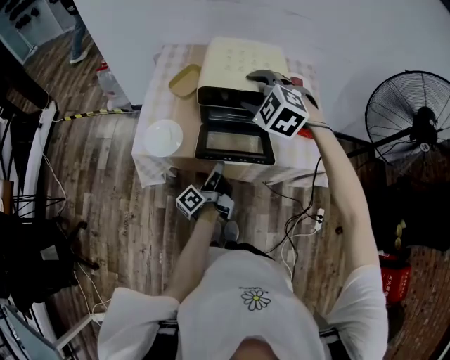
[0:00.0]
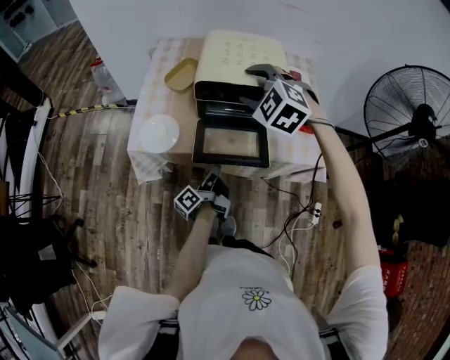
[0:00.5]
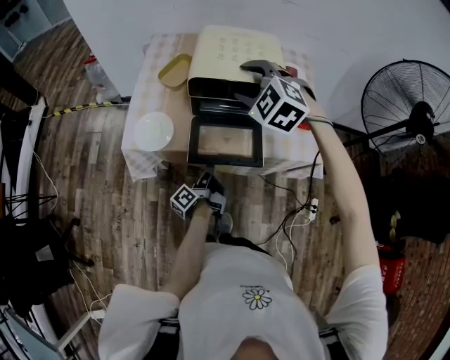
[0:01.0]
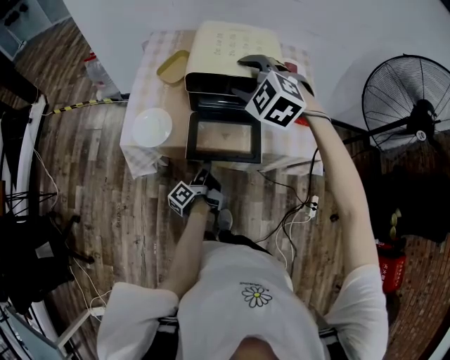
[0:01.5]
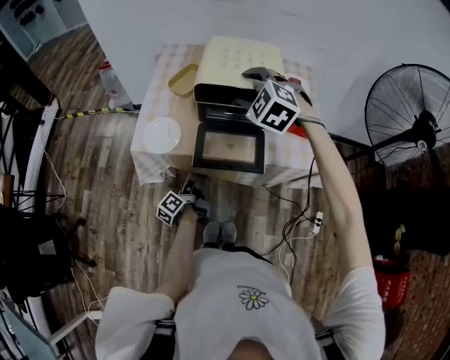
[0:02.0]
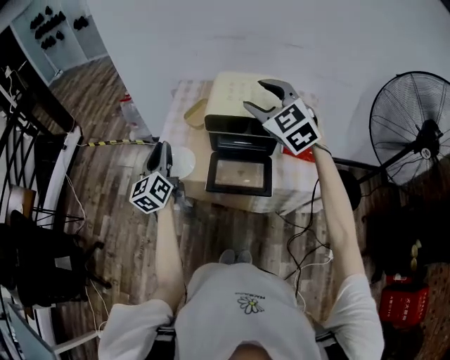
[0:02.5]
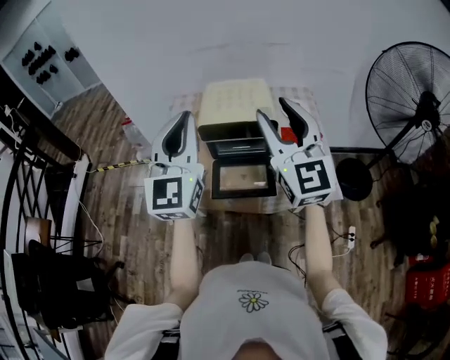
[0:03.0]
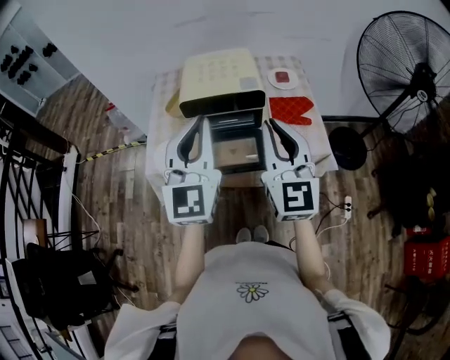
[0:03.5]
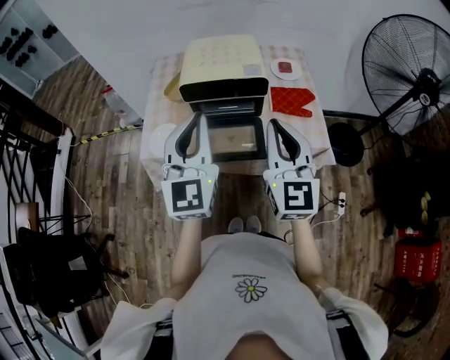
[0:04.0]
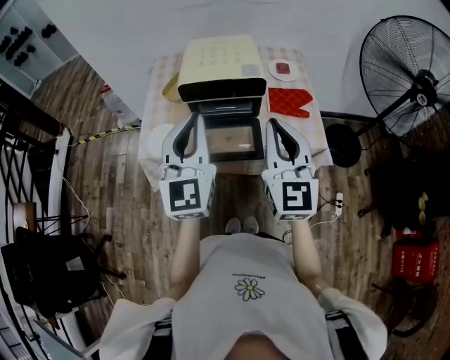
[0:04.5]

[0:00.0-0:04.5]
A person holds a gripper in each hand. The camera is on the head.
0:00.0 to 0:02.0: The left gripper is displaced downward and to the left by some 15 cm, and turns by roughly 30 degrees.
0:02.0 to 0:04.5: The right gripper goes approximately 20 cm backward and to the right, points its fingers approximately 50 degrees further upward, and closes its fingers. The left gripper heads upward, covering about 40 cm, and rolls clockwise, seen from behind, by roughly 90 degrees.

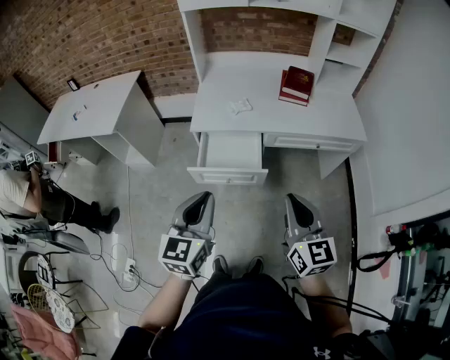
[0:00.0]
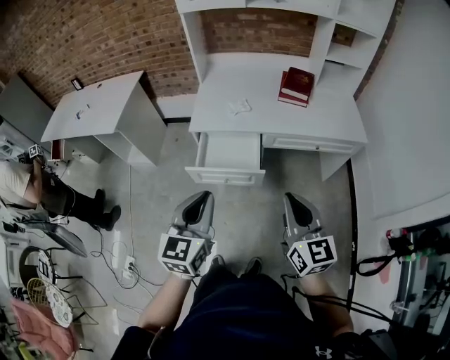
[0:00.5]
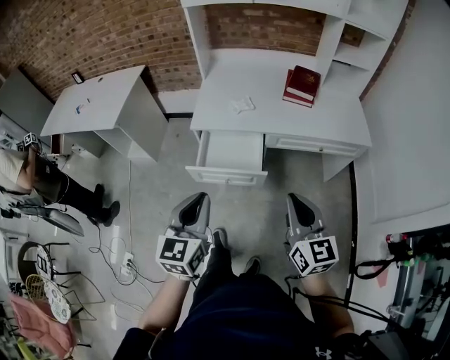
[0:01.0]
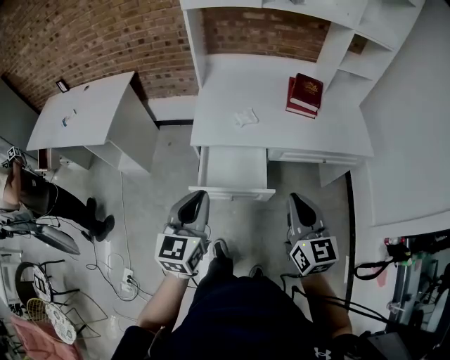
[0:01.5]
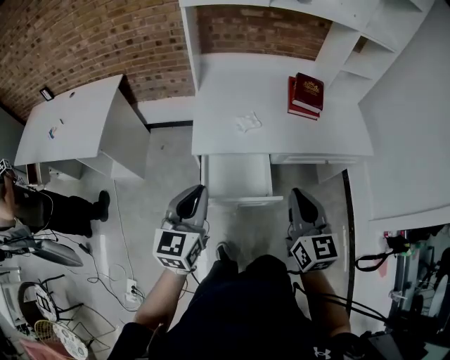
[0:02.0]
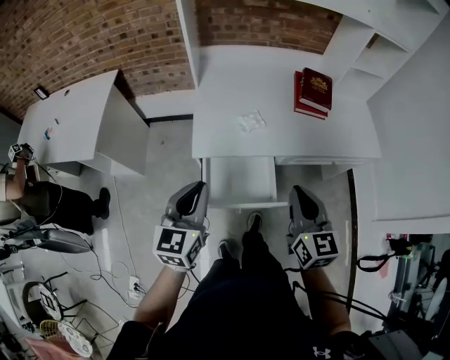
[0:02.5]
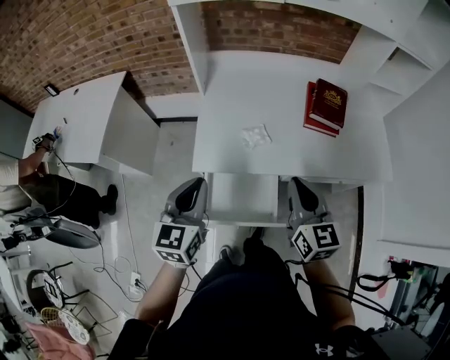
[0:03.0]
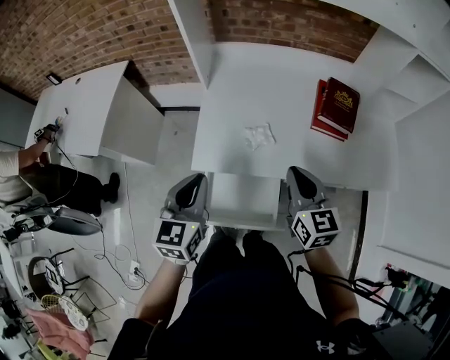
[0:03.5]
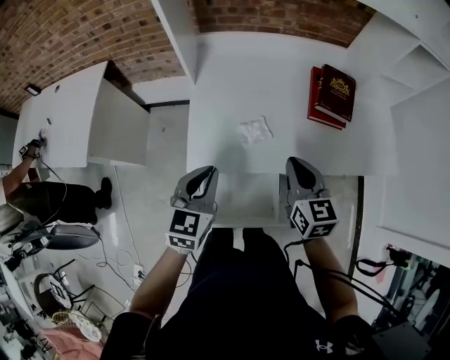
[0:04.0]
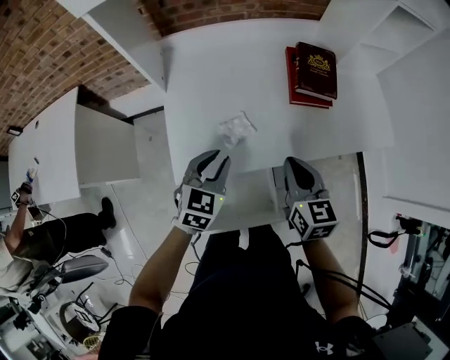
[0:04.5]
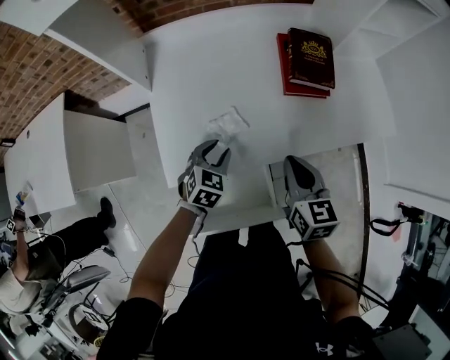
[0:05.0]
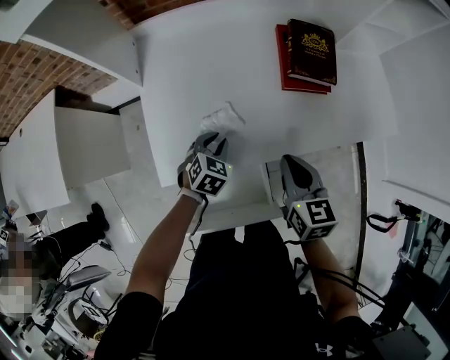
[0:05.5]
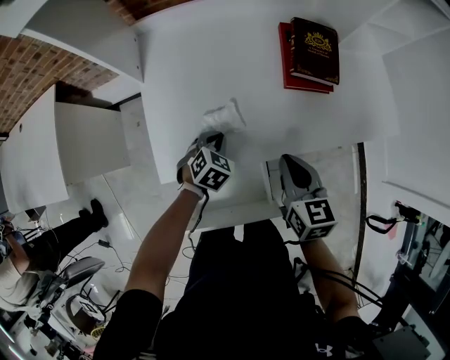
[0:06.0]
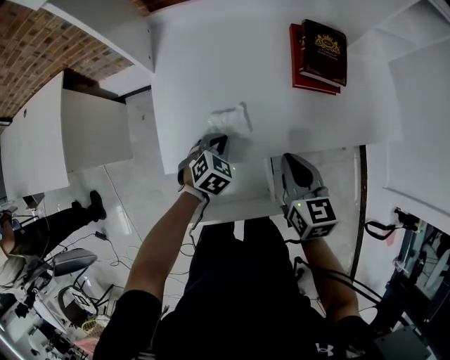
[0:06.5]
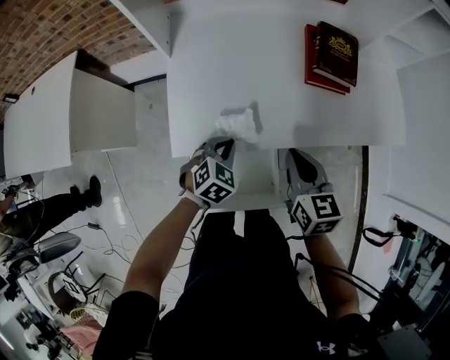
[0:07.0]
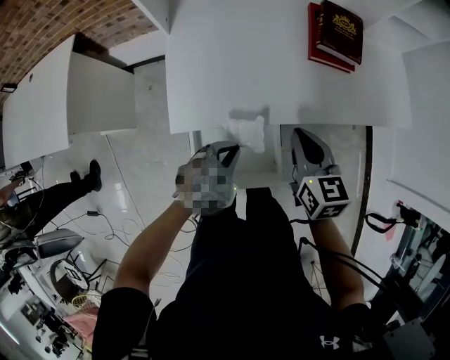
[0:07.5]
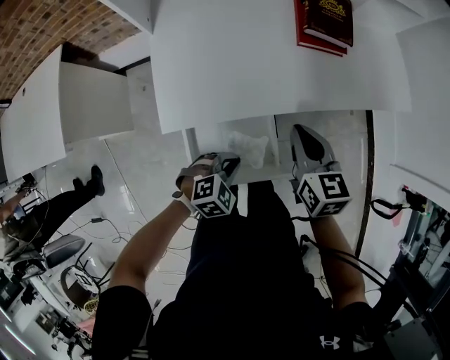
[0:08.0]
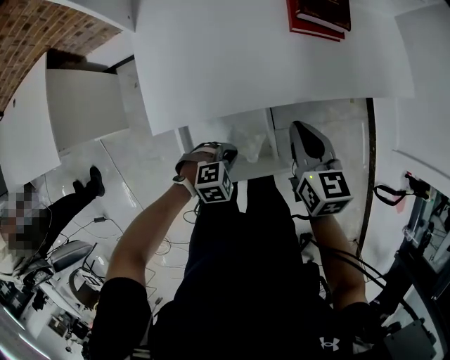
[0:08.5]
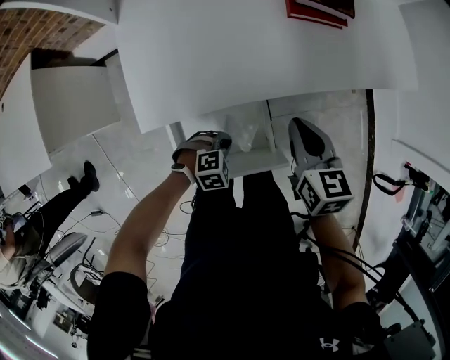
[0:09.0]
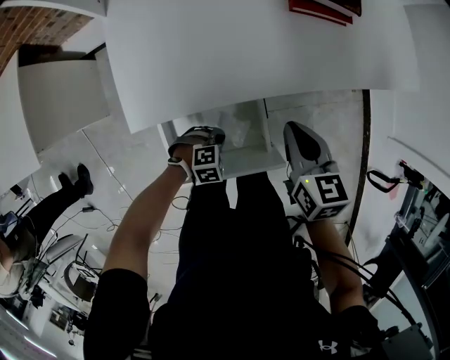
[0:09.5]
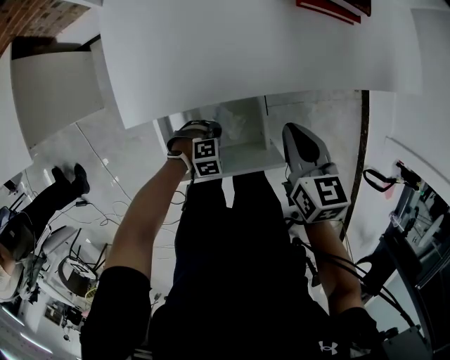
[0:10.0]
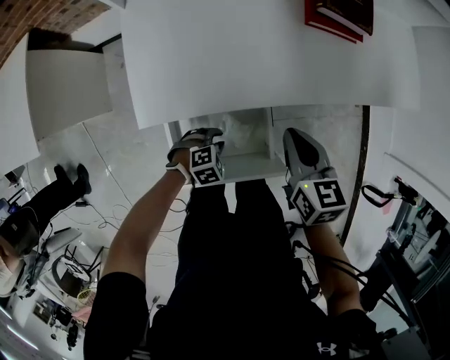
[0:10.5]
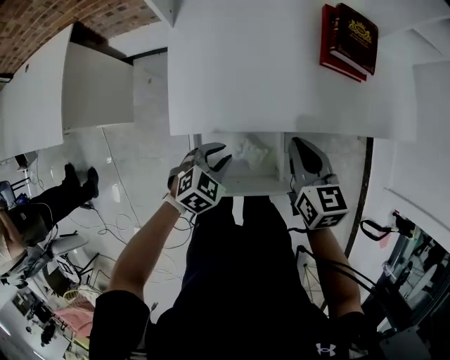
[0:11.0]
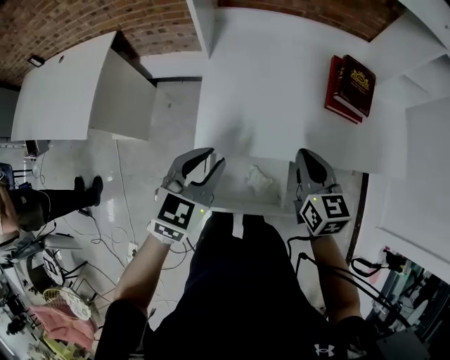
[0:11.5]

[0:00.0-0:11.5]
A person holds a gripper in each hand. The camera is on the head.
0:00.0 to 0:02.0: Both grippers travel together forward and to the left, about 20 cm.
0:02.0 to 0:04.0: Both grippers travel together forward, about 25 cm.
0:04.0 to 0:06.0: The left gripper shifts some 30 cm downward, forward and to the right, points its fingers roughly 30 degrees further downward, and opens, then closes again. Meanwhile the right gripper is displaced downward and to the right by roughly 10 cm.
0:06.0 to 0:07.5: The left gripper heads backward, covering approximately 15 cm, while the right gripper ends up about 5 cm from where it was.
0:07.5 to 0:09.5: The right gripper is displaced downward by approximately 10 cm, while the left gripper is displaced downward by some 20 cm, and rotates roughly 40 degrees.
0:09.5 to 0:11.5: The right gripper goes some 15 cm upward, and changes its angle by roughly 20 degrees. The left gripper travels upward by roughly 40 cm, points its fingers approximately 40 degrees further upward, and opens its fingers.

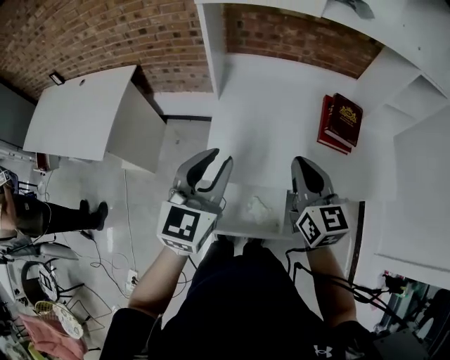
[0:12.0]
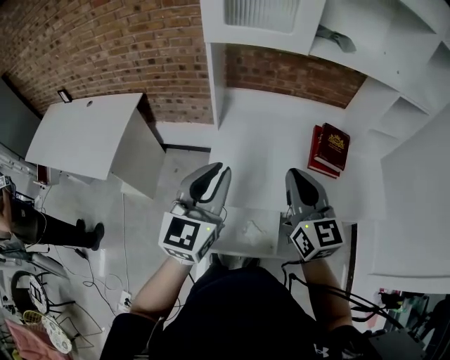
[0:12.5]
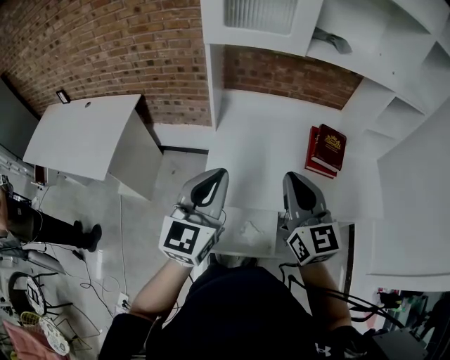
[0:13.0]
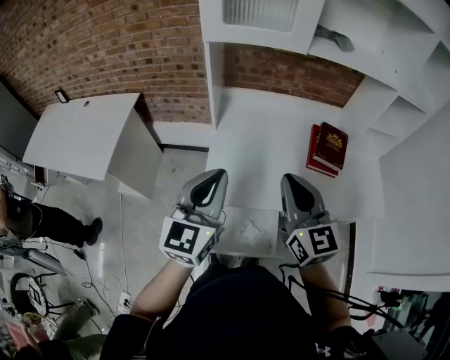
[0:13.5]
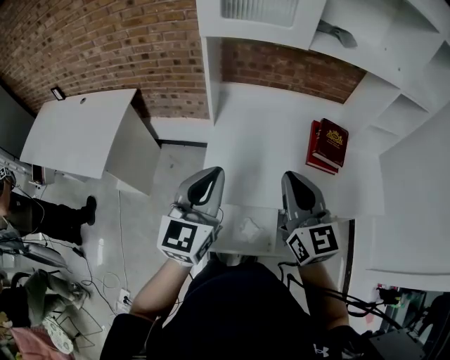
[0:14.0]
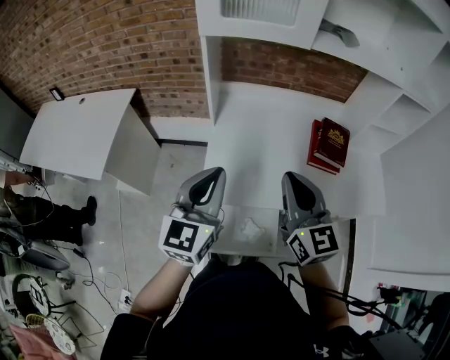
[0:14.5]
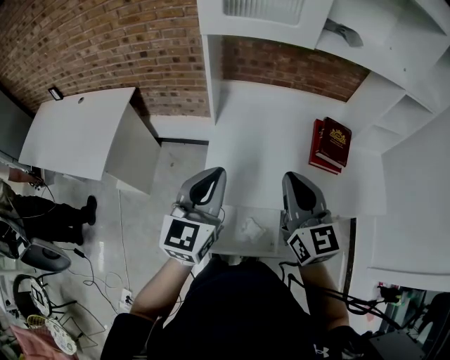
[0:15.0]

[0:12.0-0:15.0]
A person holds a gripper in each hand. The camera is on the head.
0:12.0 to 0:13.5: The left gripper moves about 5 cm, and closes its fingers; the right gripper travels upward by approximately 10 cm.
0:13.5 to 0:15.0: The grippers make only small movements.

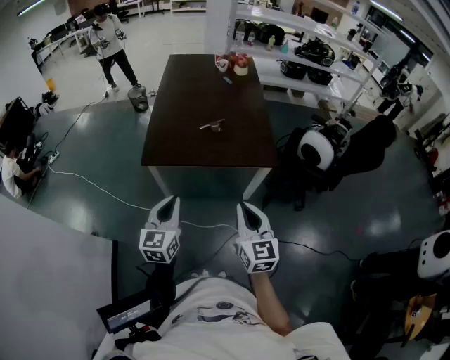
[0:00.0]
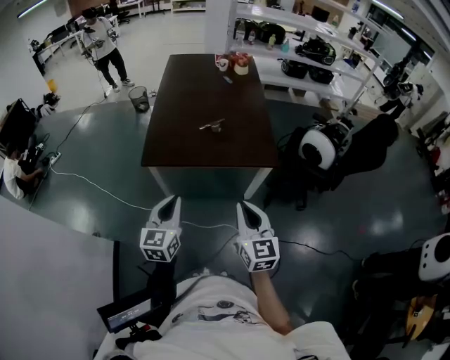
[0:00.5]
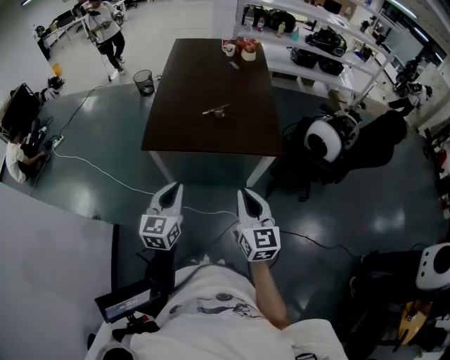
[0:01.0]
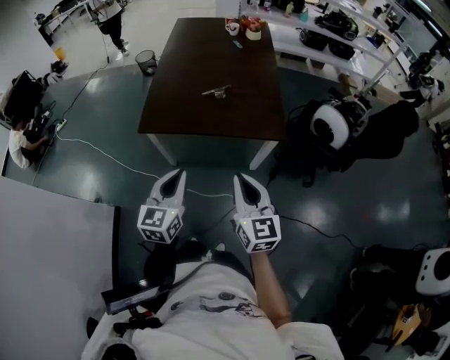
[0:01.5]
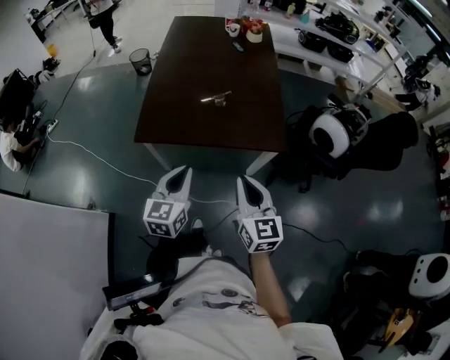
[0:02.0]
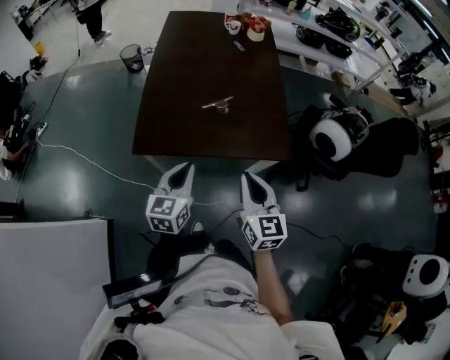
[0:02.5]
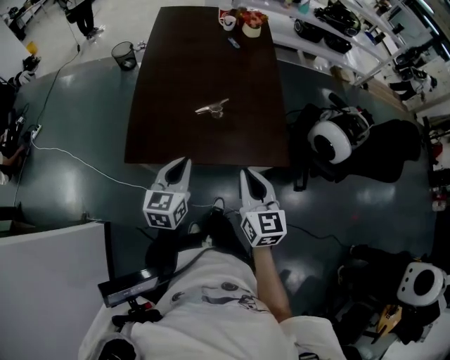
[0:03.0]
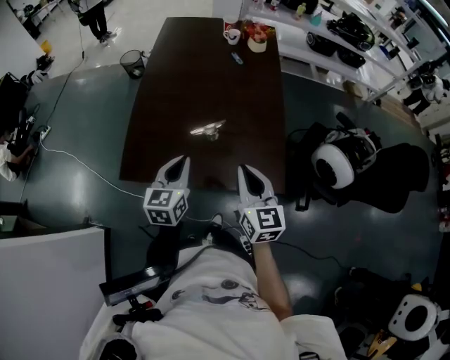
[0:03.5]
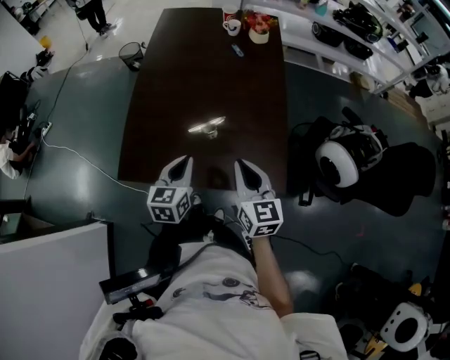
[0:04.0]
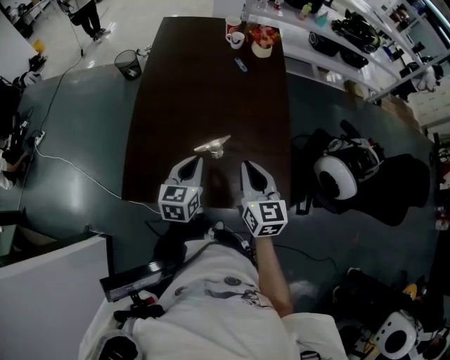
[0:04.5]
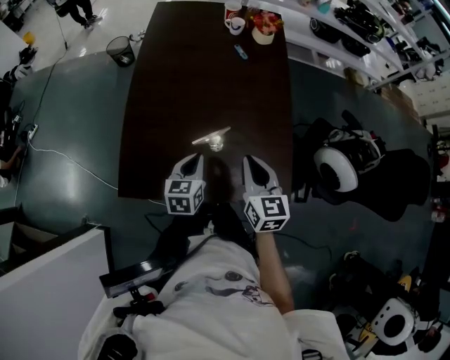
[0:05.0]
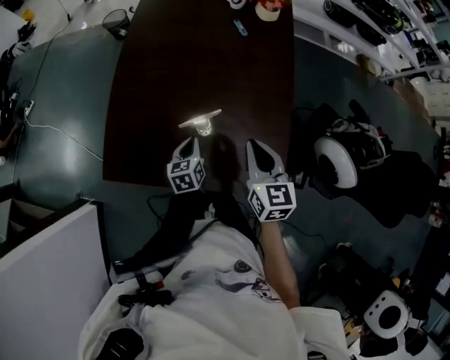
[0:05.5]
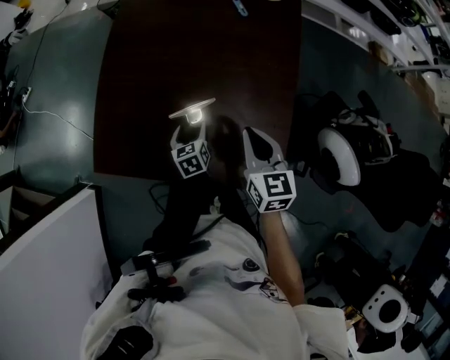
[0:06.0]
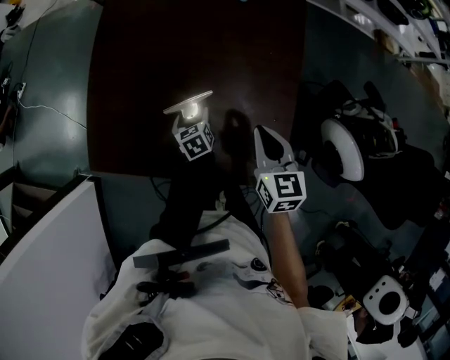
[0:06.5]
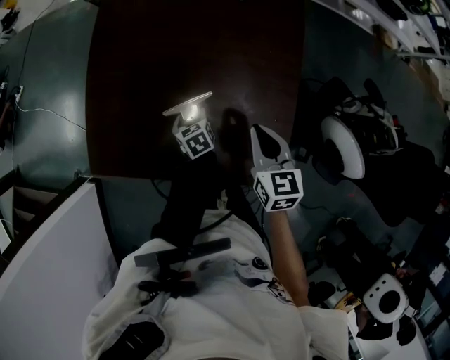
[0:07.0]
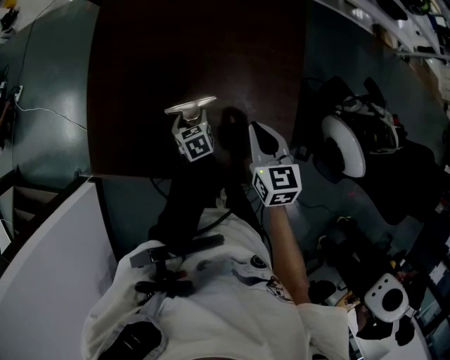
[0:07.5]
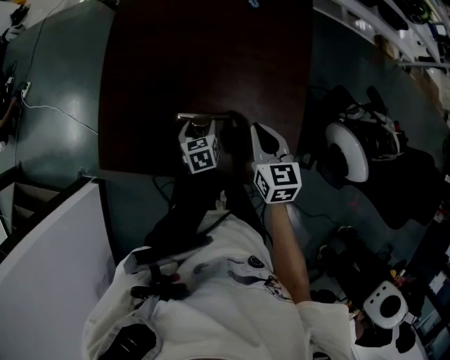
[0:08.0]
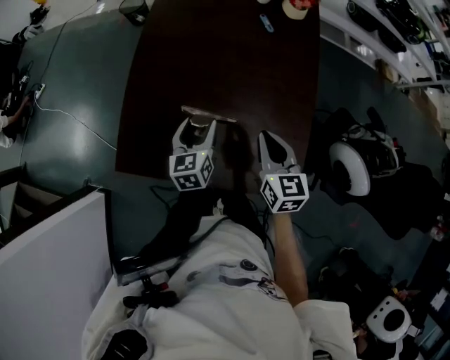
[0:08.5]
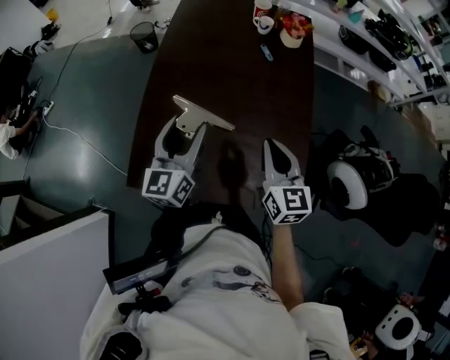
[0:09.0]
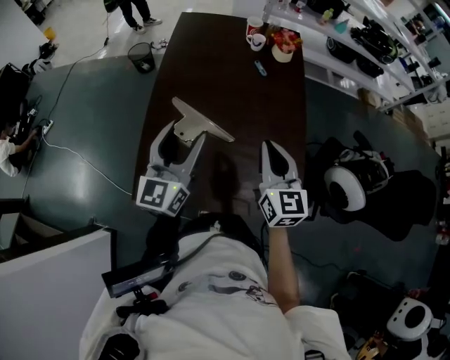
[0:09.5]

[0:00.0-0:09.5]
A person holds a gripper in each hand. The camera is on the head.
0:00.0 to 0:02.0: The left gripper heads forward and to the right, covering some 10 cm; the right gripper heads forward, covering about 10 cm.
0:02.0 to 0:04.0: The grippers both shift forward by approximately 25 cm.
0:04.0 to 0:05.5: The left gripper shifts some 15 cm downward and forward, and turns by some 20 degrees. Meanwhile the right gripper goes about 10 cm forward.
0:05.5 to 0:07.5: The grippers both shift downward by roughly 10 cm. The left gripper rotates some 20 degrees, and opens up.
0:07.5 to 0:09.5: The left gripper travels upward by about 40 cm, and tilts its fingers about 60 degrees upward. The right gripper is displaced upward and to the left by some 20 cm, and changes its angle by about 30 degrees.
